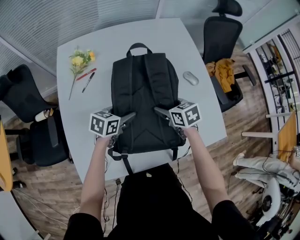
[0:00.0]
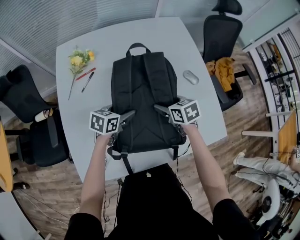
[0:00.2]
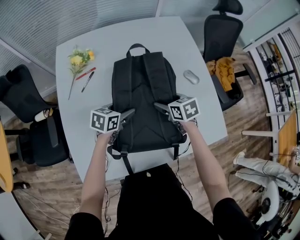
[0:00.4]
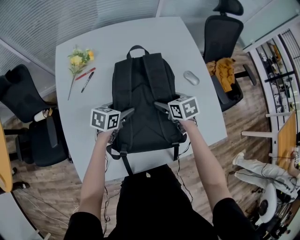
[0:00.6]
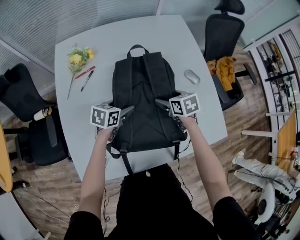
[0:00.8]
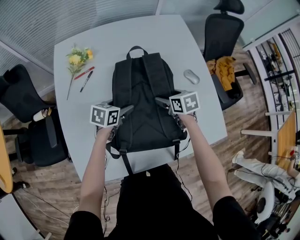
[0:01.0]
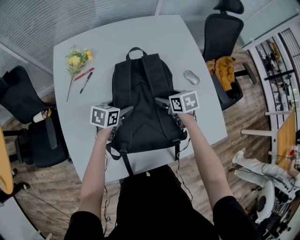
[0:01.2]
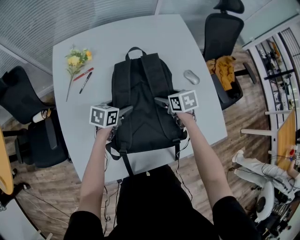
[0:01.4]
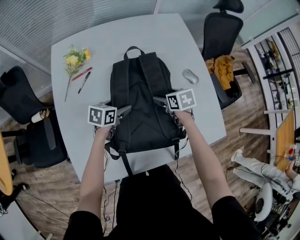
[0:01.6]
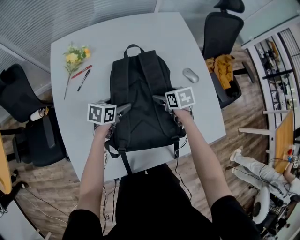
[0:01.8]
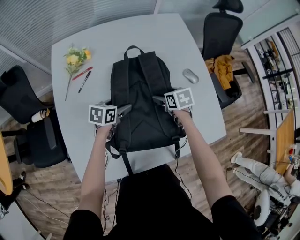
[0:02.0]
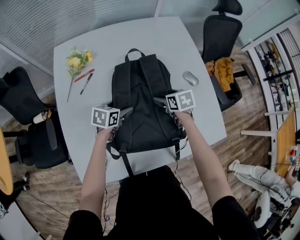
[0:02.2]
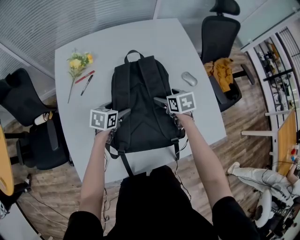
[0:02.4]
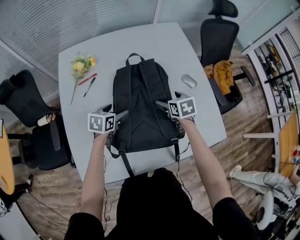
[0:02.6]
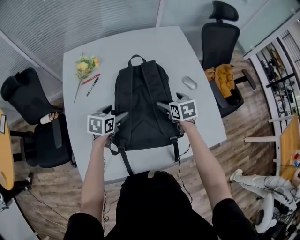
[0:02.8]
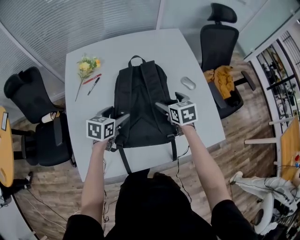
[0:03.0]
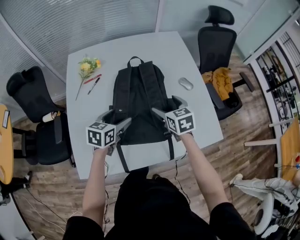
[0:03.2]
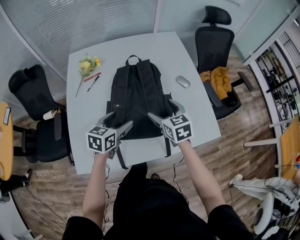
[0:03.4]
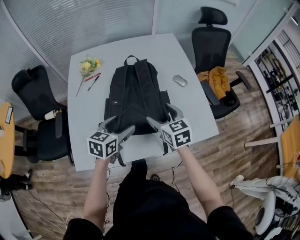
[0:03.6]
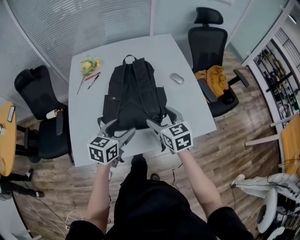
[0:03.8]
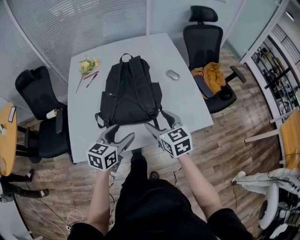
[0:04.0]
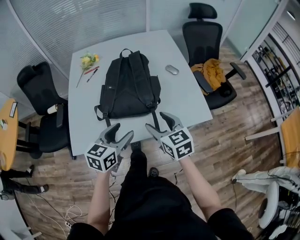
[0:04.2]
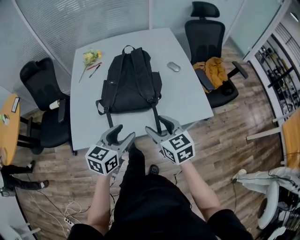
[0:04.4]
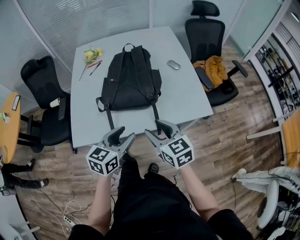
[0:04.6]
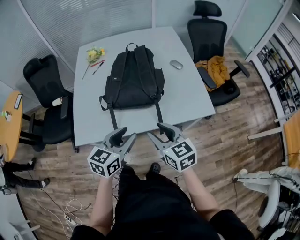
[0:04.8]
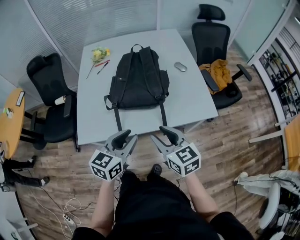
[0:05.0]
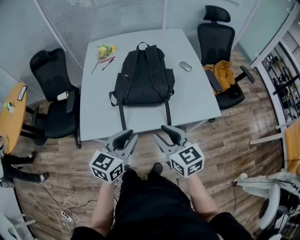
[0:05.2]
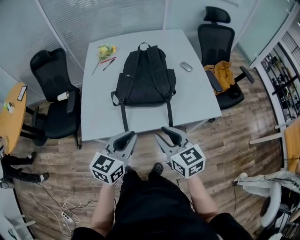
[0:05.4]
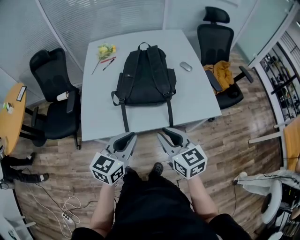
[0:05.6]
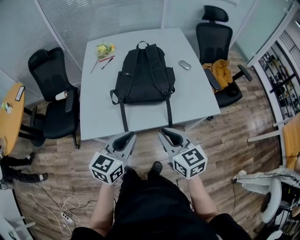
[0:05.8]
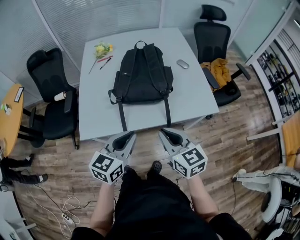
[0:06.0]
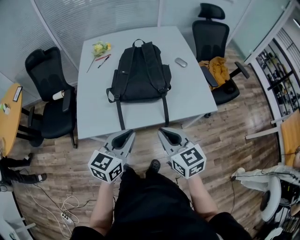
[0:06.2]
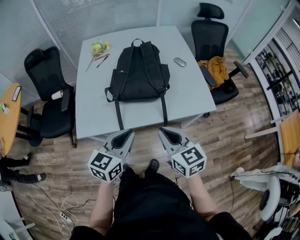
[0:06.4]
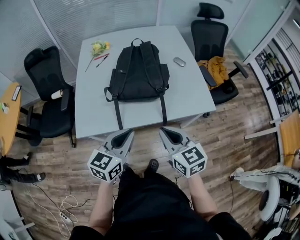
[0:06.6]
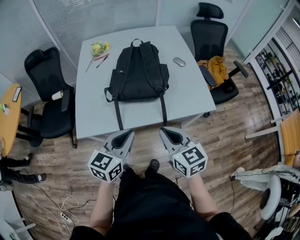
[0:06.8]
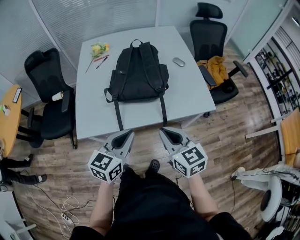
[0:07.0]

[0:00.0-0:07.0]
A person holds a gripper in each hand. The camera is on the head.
0.0 to 1.4 s: The right gripper is displaced forward by about 5 cm; the left gripper moves approximately 5 cm.
1.4 to 2.8 s: The left gripper shifts by approximately 5 cm. Meanwhile the right gripper shifts by approximately 5 cm.
2.8 to 4.2 s: The left gripper heads backward, to the right and upward, covering roughly 35 cm, and rotates some 20 degrees; the right gripper heads backward and upward, covering some 35 cm, and turns by roughly 30 degrees.
4.2 to 5.6 s: The left gripper travels backward by some 10 cm, and closes; the right gripper heads backward and to the left, covering roughly 15 cm, and closes up.
5.6 to 7.0 s: The grippers move only a little.

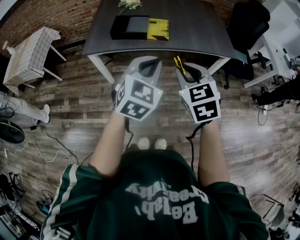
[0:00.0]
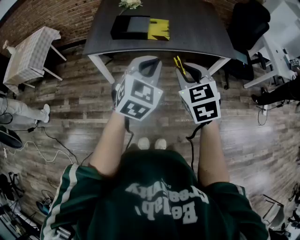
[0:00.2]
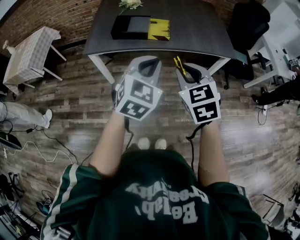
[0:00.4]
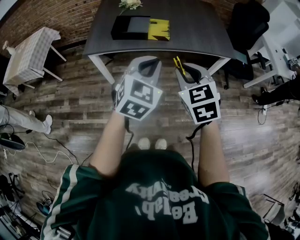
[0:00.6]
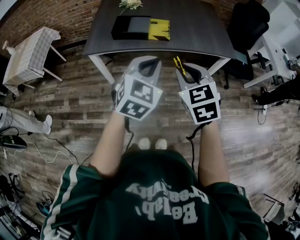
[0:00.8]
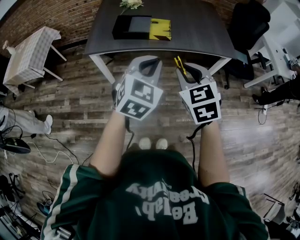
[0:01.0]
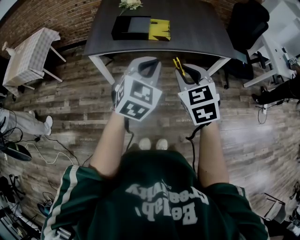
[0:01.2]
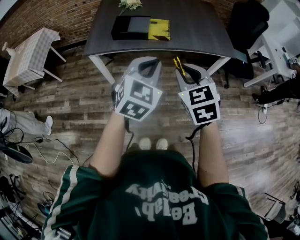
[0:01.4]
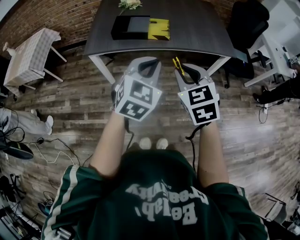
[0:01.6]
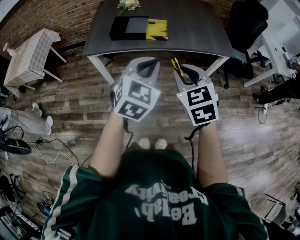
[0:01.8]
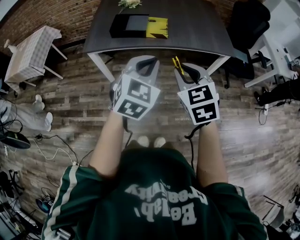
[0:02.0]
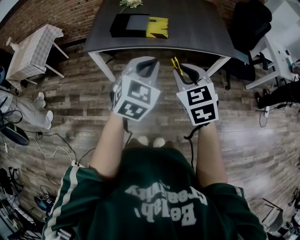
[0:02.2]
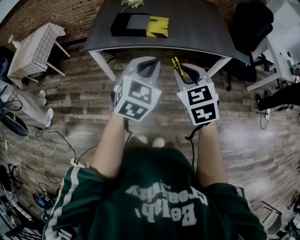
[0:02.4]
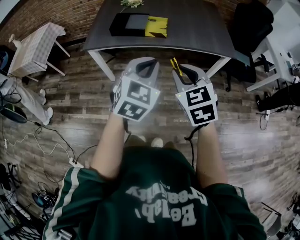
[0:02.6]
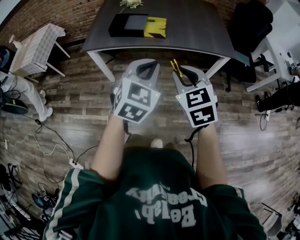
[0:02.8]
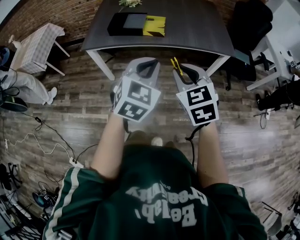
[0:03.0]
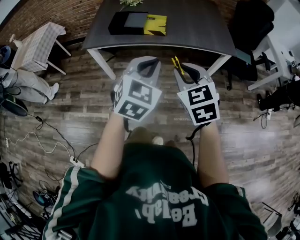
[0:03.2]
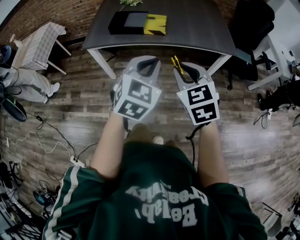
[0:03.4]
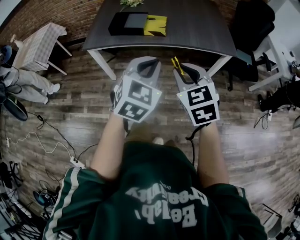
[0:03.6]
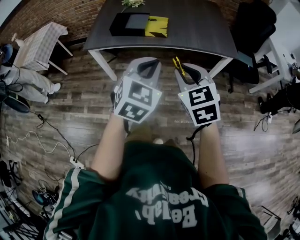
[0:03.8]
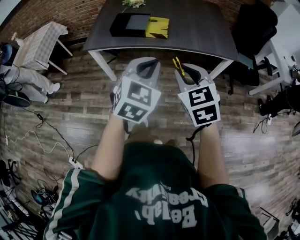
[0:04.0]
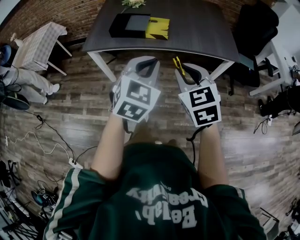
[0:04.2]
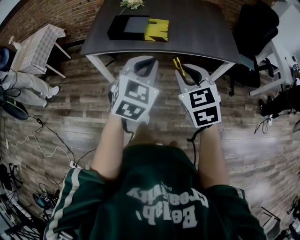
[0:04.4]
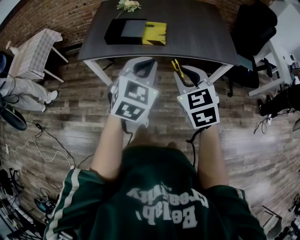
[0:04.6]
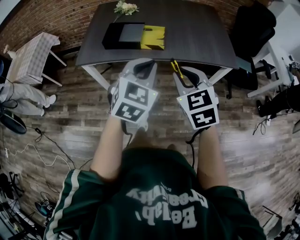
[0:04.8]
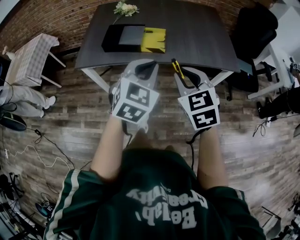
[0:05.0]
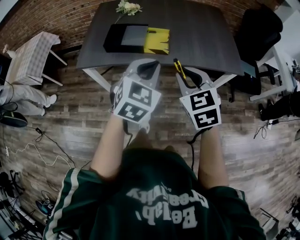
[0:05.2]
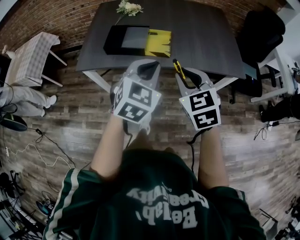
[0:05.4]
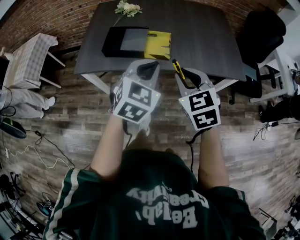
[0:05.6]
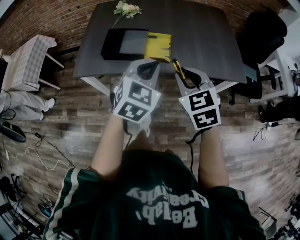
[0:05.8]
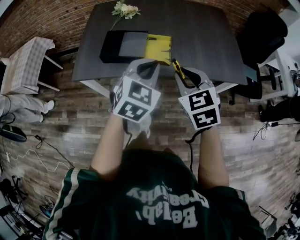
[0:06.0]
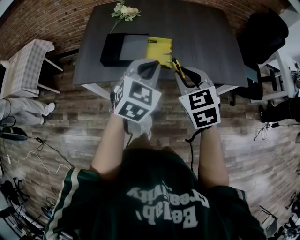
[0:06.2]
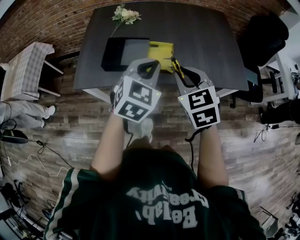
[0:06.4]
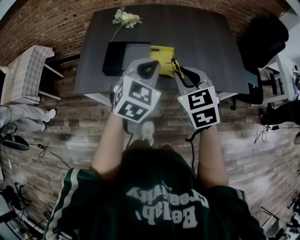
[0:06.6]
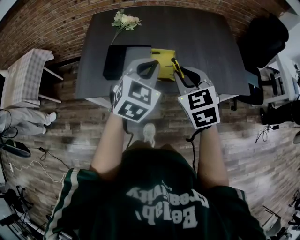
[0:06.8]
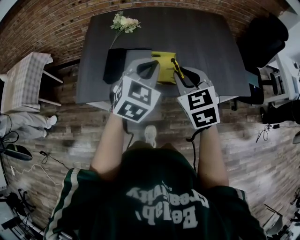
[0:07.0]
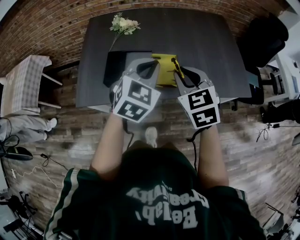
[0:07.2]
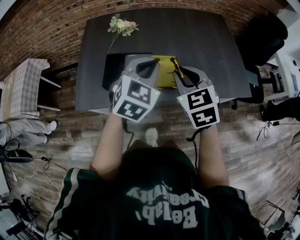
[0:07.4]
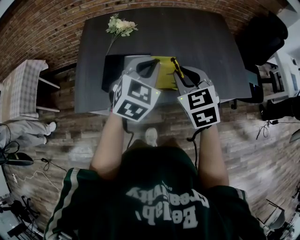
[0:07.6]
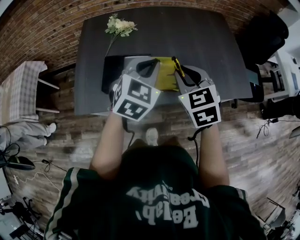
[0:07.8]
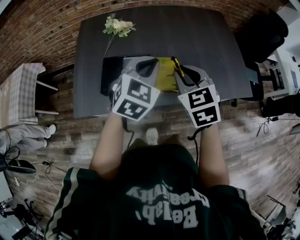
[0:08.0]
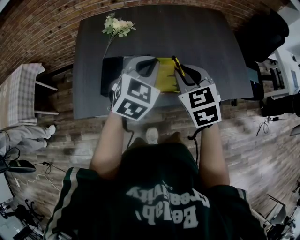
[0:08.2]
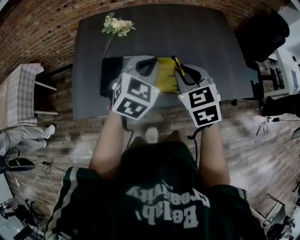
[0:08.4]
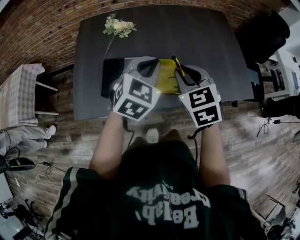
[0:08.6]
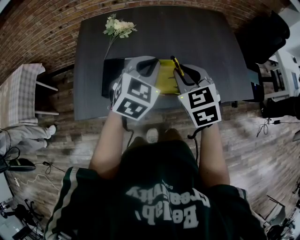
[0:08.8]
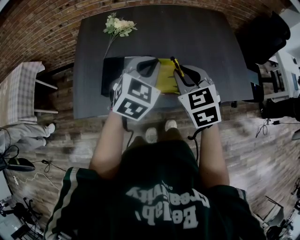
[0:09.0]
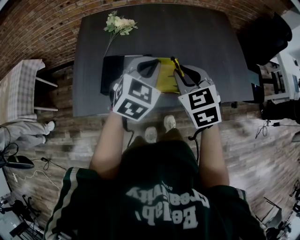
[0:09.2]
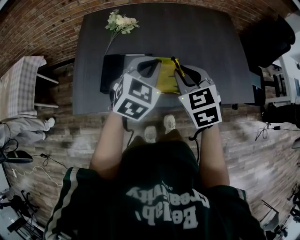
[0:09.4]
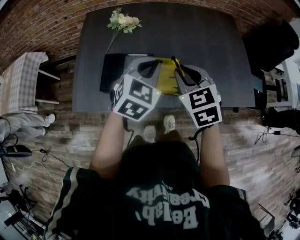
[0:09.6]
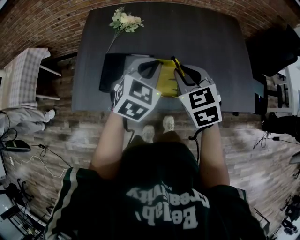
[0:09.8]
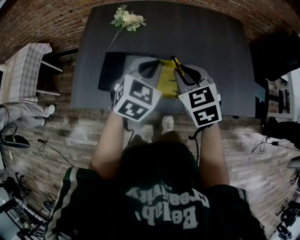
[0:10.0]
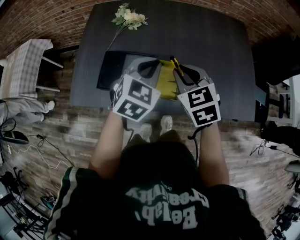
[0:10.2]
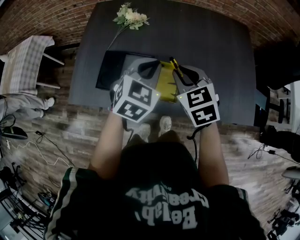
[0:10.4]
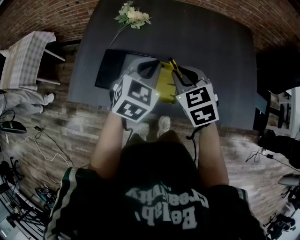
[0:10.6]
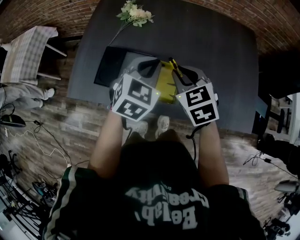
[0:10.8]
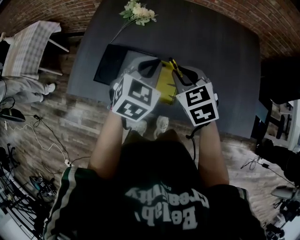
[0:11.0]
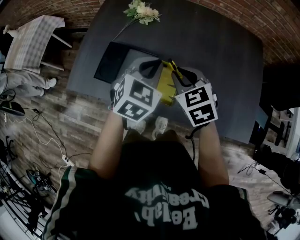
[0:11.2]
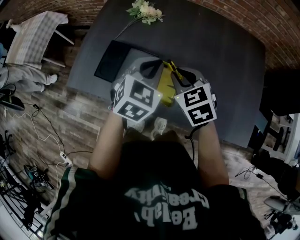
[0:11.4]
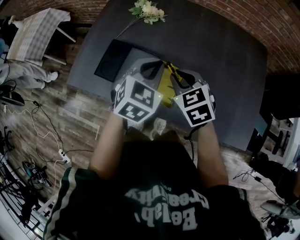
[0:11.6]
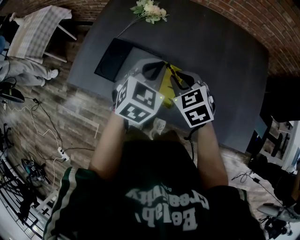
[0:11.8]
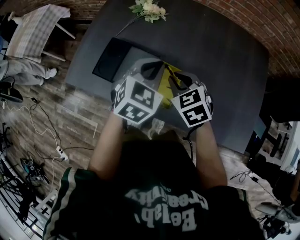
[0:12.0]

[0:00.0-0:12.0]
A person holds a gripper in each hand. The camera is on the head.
0.0 to 1.6 s: The grippers move only a little.
1.6 to 3.0 s: Both grippers move to the right, about 5 cm.
3.0 to 4.4 s: The two grippers go roughly 5 cm forward.
4.4 to 6.0 s: The grippers both shift forward by some 25 cm.
6.0 to 7.6 s: Both grippers move forward, some 15 cm.
7.6 to 9.0 s: There are only small adjustments of the grippers.
9.0 to 10.4 s: The two grippers go approximately 5 cm forward.
10.4 to 12.0 s: The right gripper goes some 10 cm downward; the left gripper changes place by approximately 5 cm.

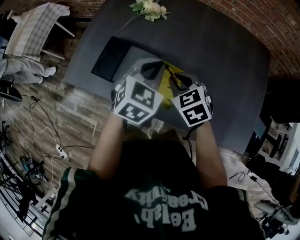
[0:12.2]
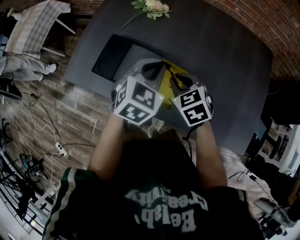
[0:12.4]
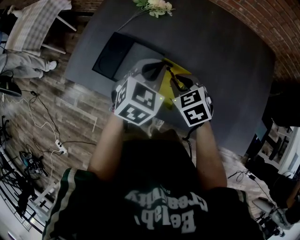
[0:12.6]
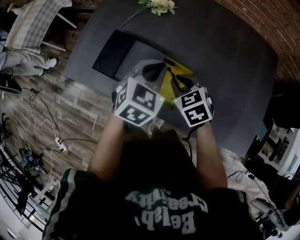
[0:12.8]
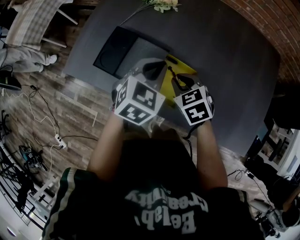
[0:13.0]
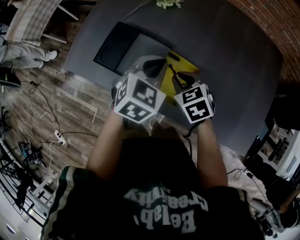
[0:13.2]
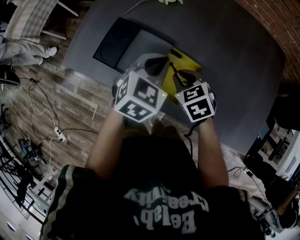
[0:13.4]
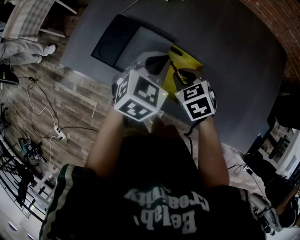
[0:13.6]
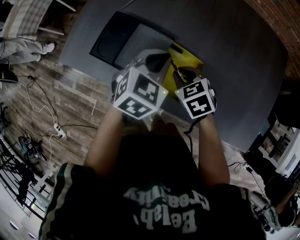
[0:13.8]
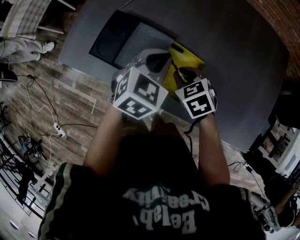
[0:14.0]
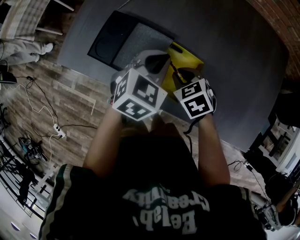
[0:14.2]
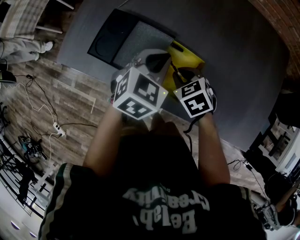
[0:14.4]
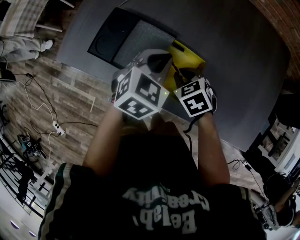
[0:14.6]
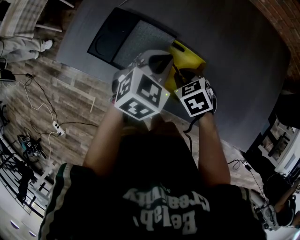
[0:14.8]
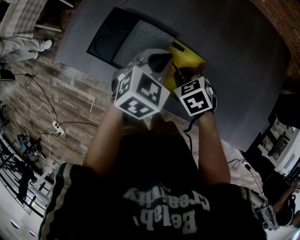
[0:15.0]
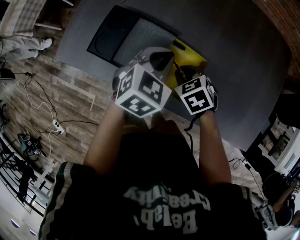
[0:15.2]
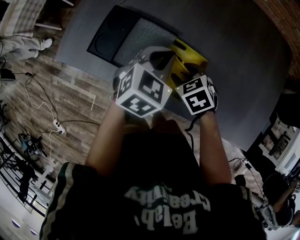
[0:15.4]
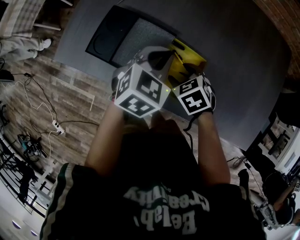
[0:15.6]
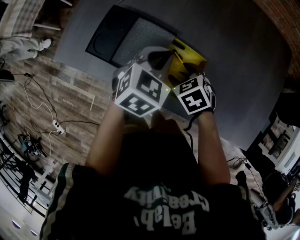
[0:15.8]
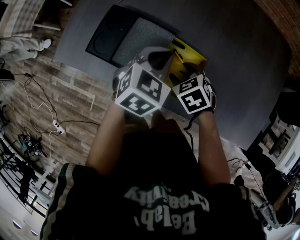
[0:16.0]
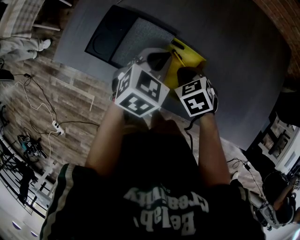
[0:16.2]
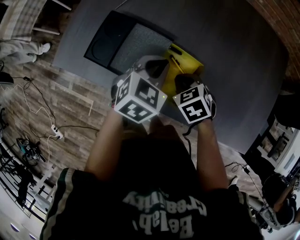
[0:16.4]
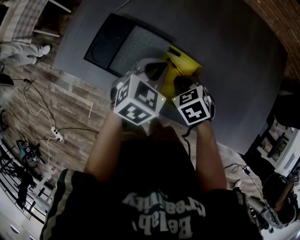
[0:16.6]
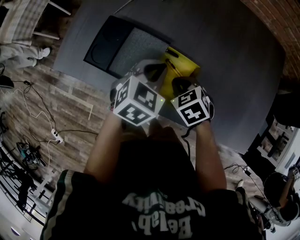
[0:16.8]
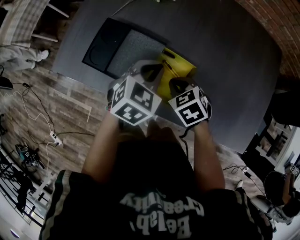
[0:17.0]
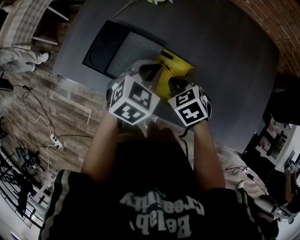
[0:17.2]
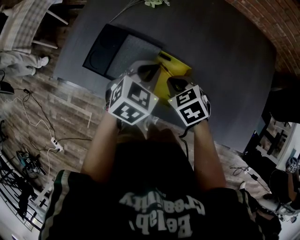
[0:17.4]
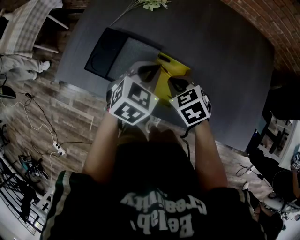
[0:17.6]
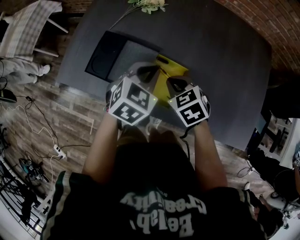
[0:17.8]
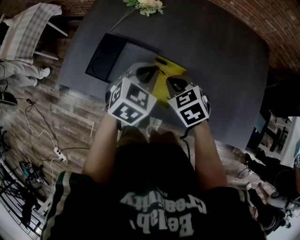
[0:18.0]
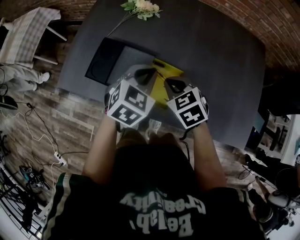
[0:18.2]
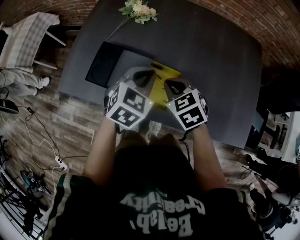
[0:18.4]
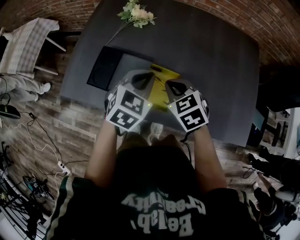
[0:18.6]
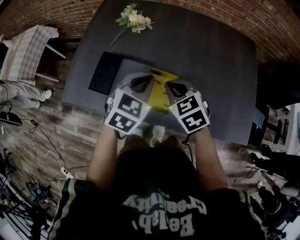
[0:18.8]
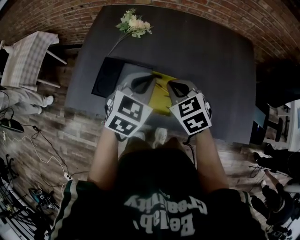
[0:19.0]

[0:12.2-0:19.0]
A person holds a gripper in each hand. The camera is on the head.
12.2 to 13.6 s: Both grippers travel together downward, roughly 10 cm.
13.6 to 15.0 s: The right gripper heads downward, covering approximately 5 cm.
15.0 to 16.2 s: The right gripper opens, then closes again.
16.2 to 17.6 s: The right gripper goes approximately 5 cm upward. The left gripper shifts by some 5 cm.
17.6 to 19.0 s: Both grippers travel together upward, approximately 10 cm.
